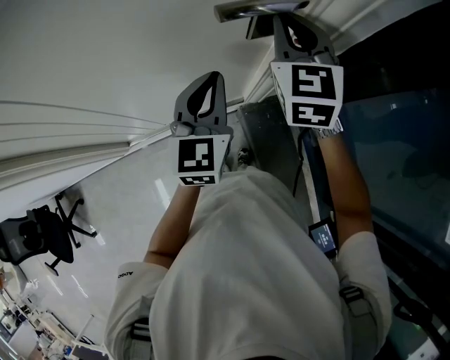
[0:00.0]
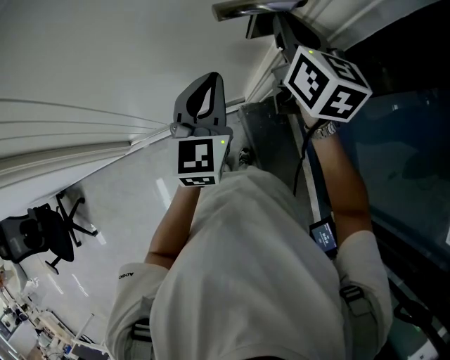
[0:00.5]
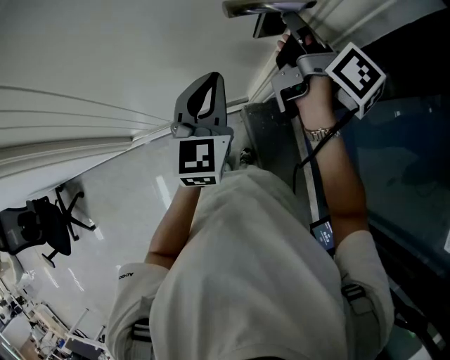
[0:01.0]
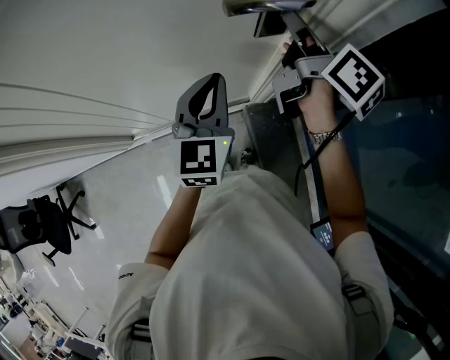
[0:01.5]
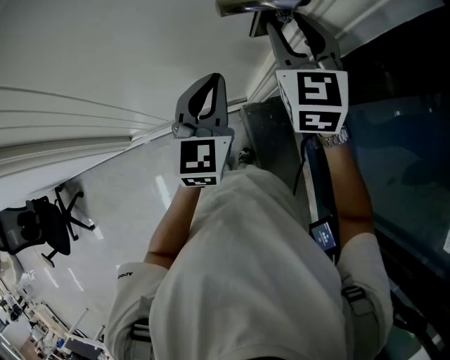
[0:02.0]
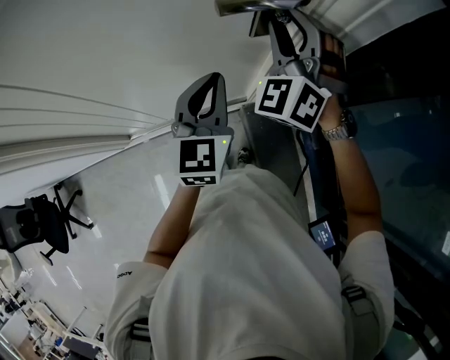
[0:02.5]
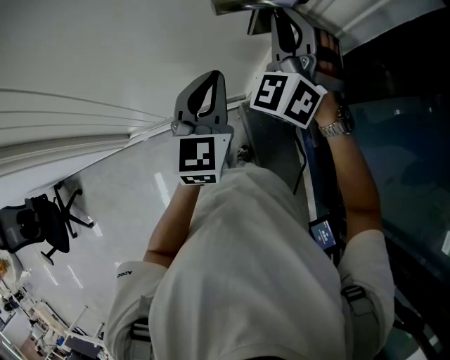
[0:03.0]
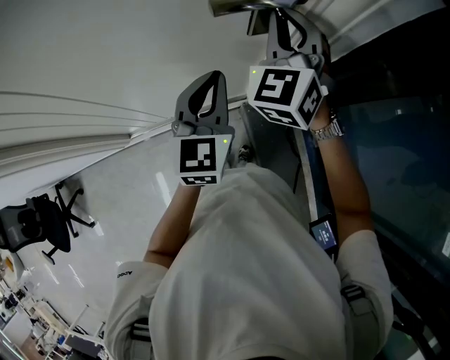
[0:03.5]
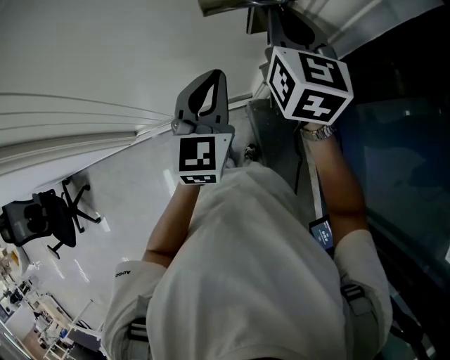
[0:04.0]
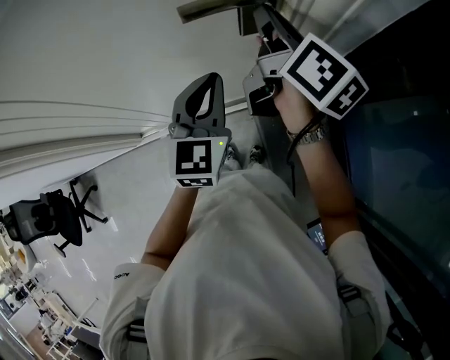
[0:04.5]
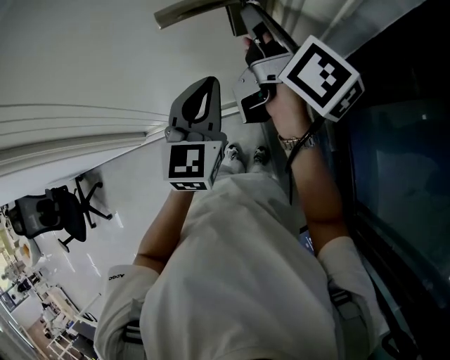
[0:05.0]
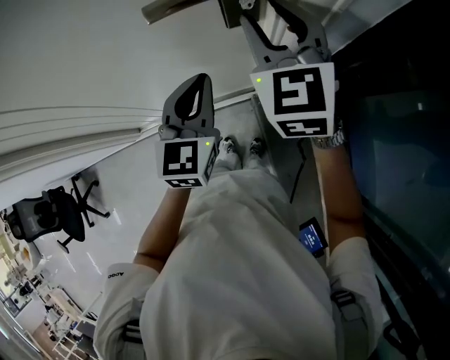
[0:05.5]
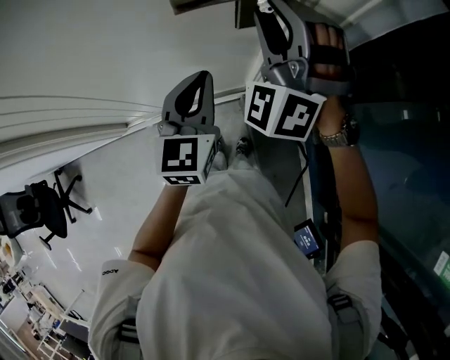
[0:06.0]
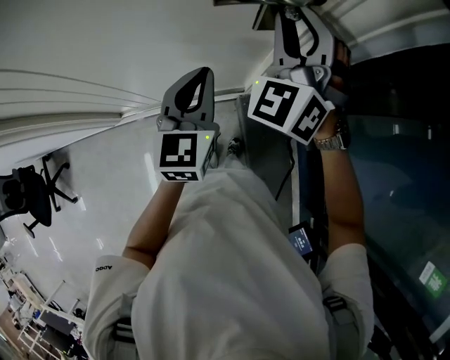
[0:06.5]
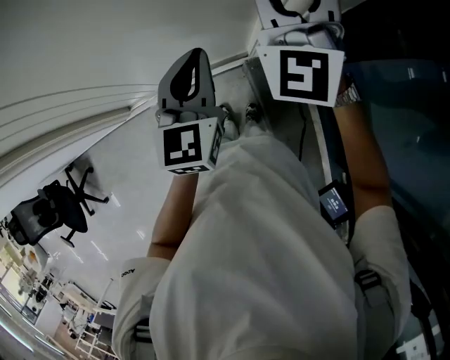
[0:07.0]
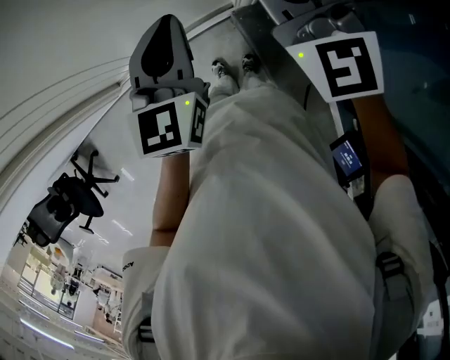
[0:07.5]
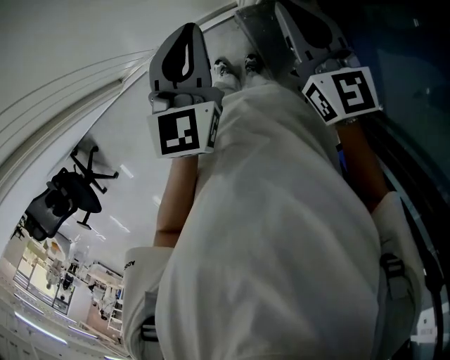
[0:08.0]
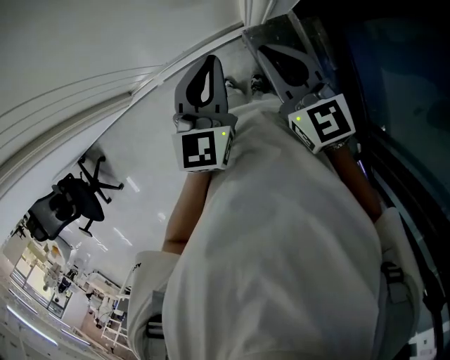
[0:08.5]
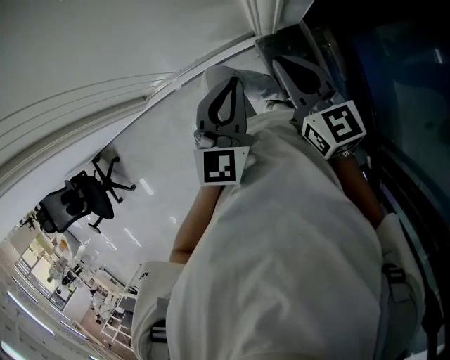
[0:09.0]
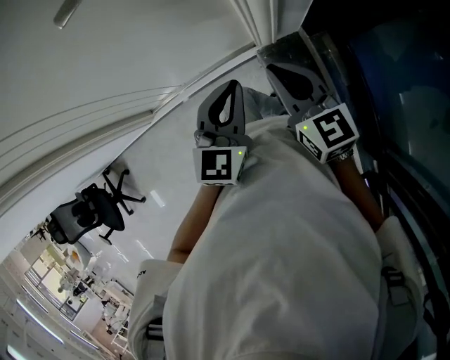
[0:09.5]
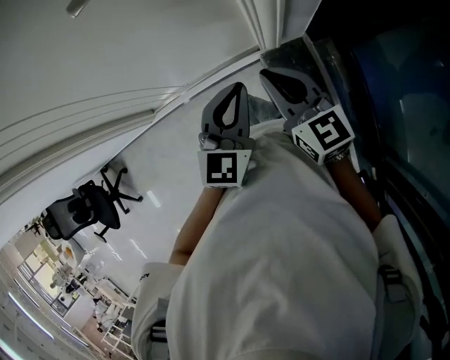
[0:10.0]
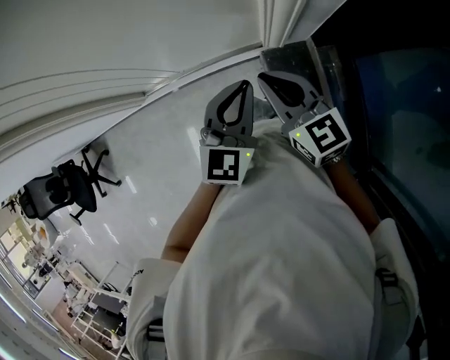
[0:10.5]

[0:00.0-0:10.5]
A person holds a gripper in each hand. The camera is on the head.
0:00.0 to 0:02.0: The right gripper opens its fingers.
0:02.0 to 0:04.0: The right gripper turns by approximately 20 degrees, and closes.
0:04.0 to 0:06.5: The right gripper rotates around the line of its fingers by roughly 60 degrees, counterclockwise from behind, and opens up.
0:06.5 to 0:08.5: The left gripper goes roughly 15 cm backward, to the right and downward, while the right gripper moves backward and downward, some 25 cm, twists about 60 degrees clockwise, seen from behind, and closes up.

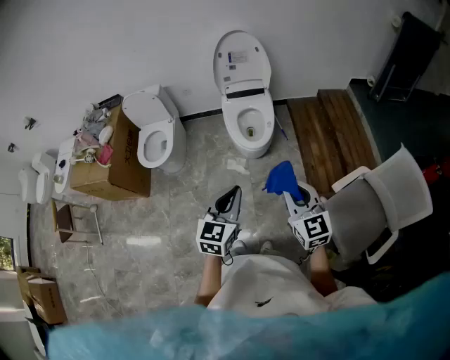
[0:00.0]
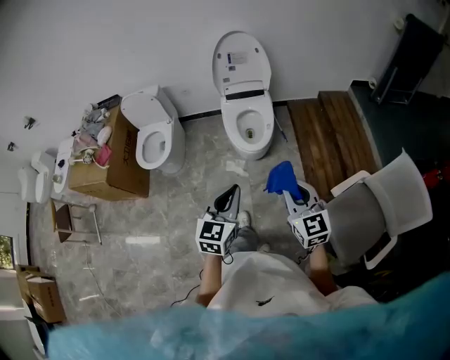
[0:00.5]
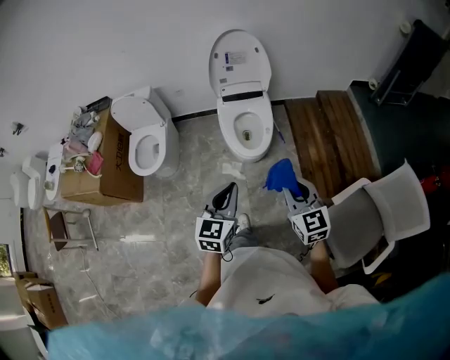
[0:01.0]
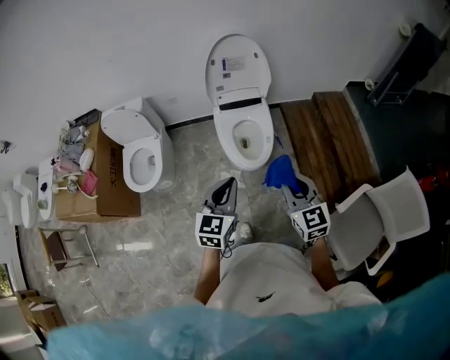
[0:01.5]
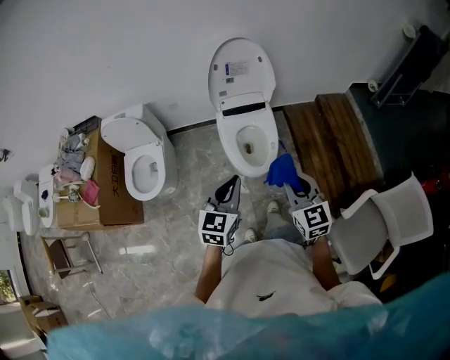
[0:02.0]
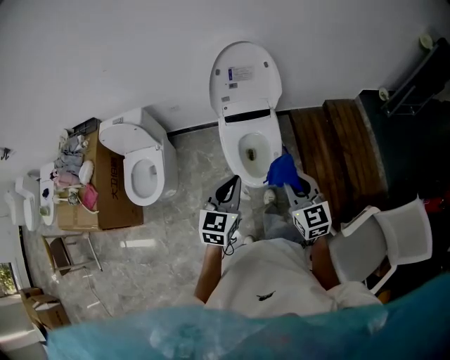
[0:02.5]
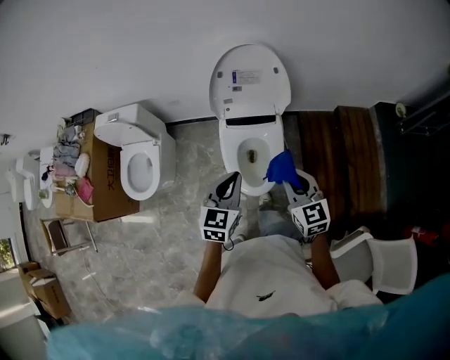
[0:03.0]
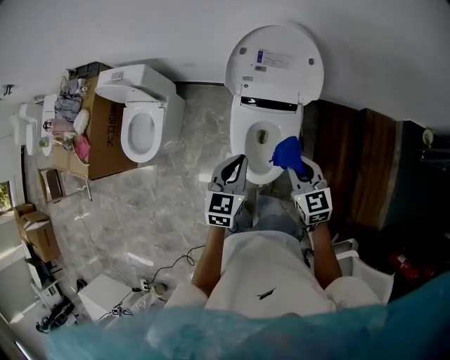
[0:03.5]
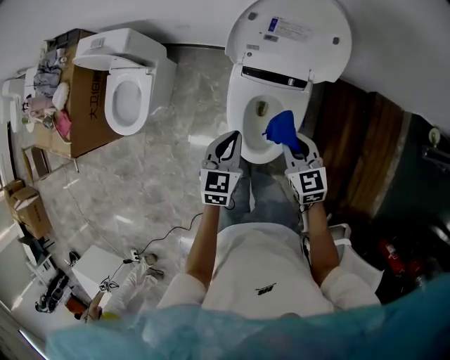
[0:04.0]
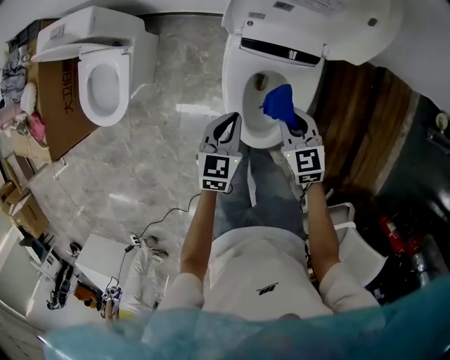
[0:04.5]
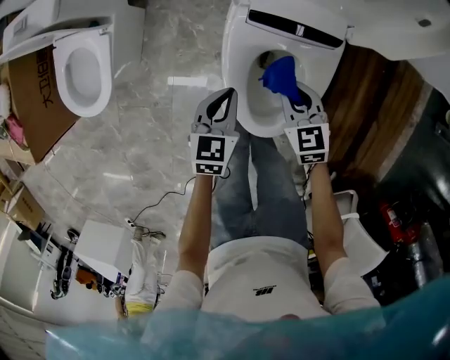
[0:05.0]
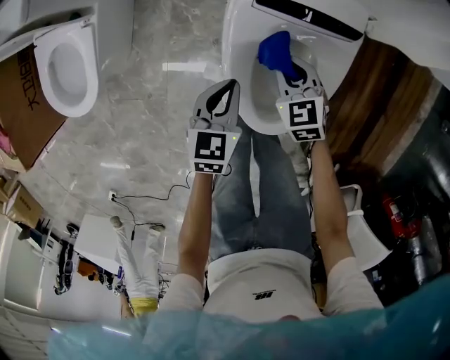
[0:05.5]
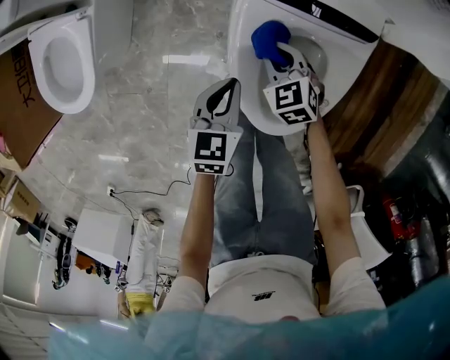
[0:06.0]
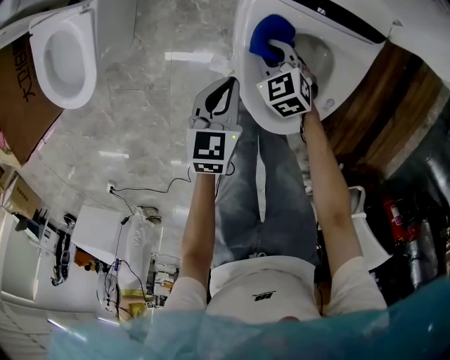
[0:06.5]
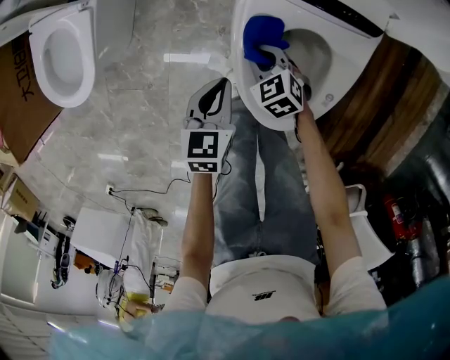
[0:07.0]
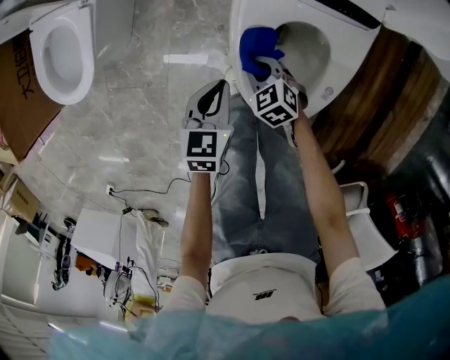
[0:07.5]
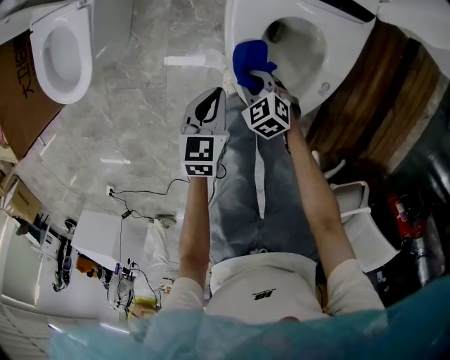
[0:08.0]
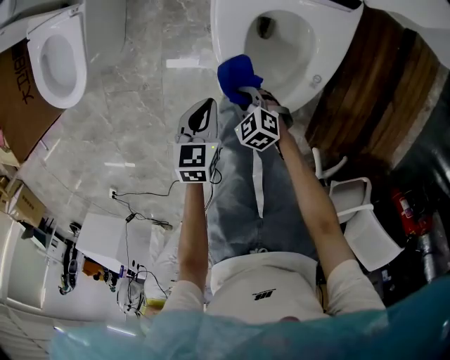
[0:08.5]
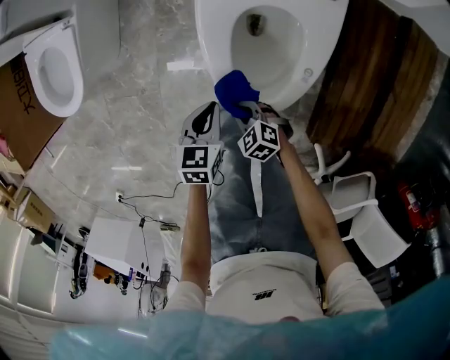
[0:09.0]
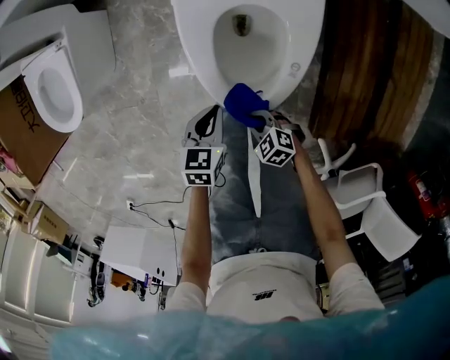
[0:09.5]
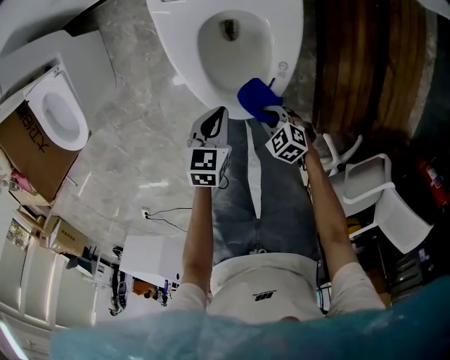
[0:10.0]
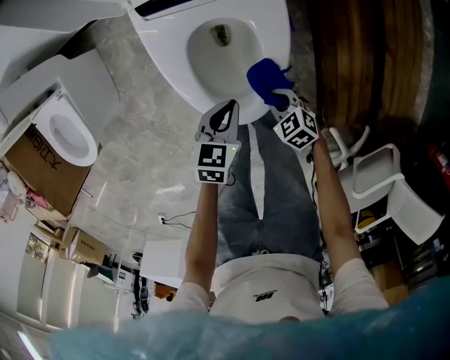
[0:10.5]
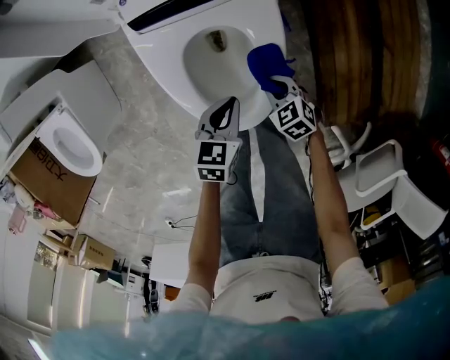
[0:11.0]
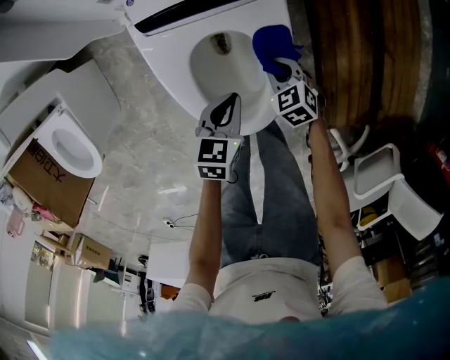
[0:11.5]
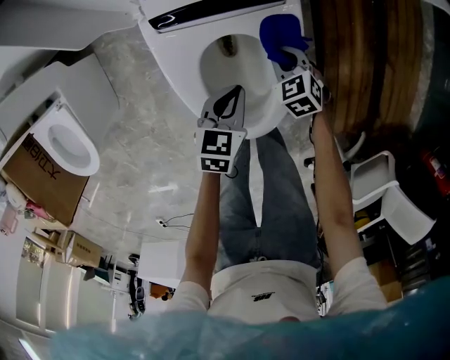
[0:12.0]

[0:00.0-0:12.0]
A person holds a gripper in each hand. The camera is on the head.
0:00.0 to 0:02.0: Both grippers travel together forward, approximately 30 cm.
0:02.0 to 0:04.0: The grippers both shift forward and downward by approximately 40 cm. The left gripper rotates roughly 30 degrees, while the right gripper changes its angle by about 30 degrees.
0:04.0 to 0:06.0: The grippers both shift downward by about 35 cm. The right gripper turns by some 30 degrees.
0:06.0 to 0:08.0: The right gripper travels backward and to the left by roughly 15 cm, while the left gripper travels backward by about 10 cm.
0:08.0 to 0:10.0: The right gripper moves about 20 cm. The left gripper shifts by about 15 cm.
0:10.0 to 0:12.0: The left gripper ends up roughly 15 cm from where it was. The right gripper changes place by roughly 30 cm, and turns by some 30 degrees.

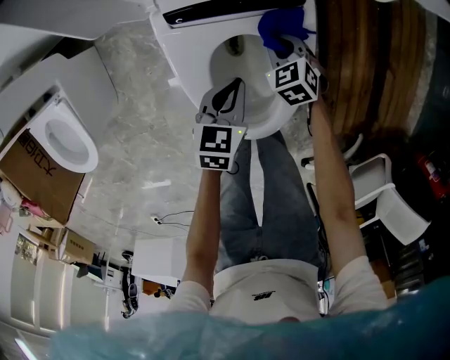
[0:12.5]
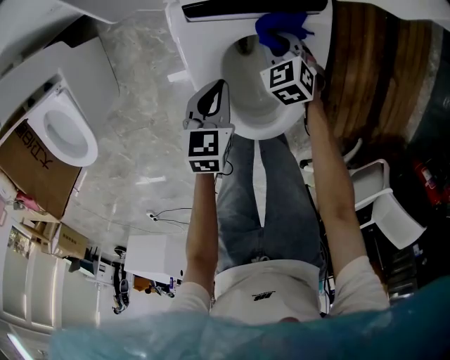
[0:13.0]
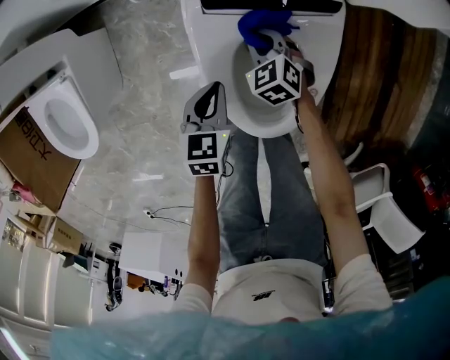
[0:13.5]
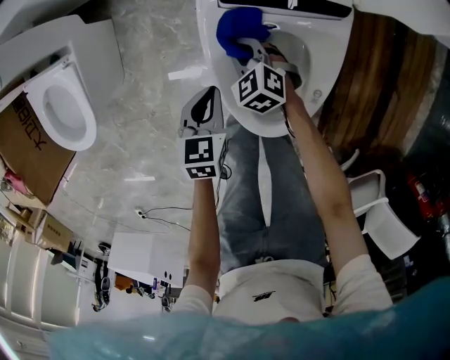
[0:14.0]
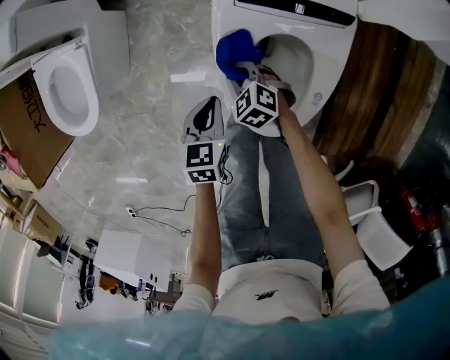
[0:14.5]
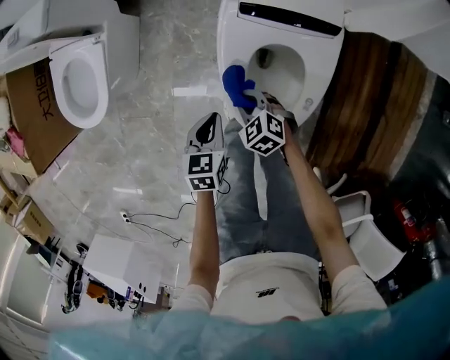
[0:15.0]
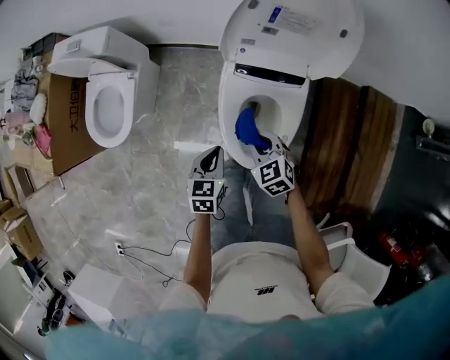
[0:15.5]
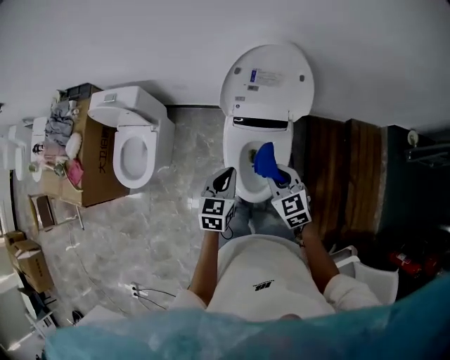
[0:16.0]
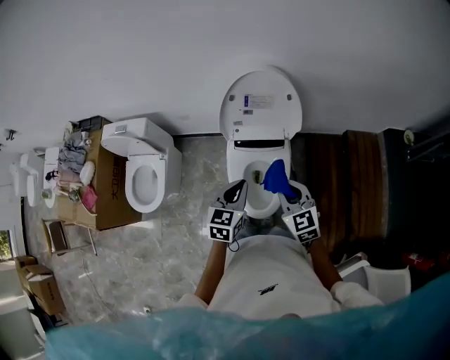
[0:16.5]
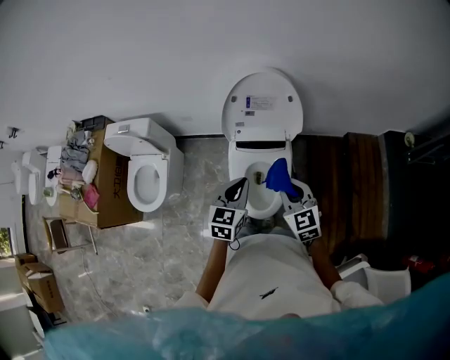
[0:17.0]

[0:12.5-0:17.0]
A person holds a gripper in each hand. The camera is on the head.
0:12.5 to 0:14.5: The left gripper shifts by about 20 cm, and rotates roughly 20 degrees. The right gripper moves some 25 cm, and changes its angle by approximately 30 degrees.
0:14.5 to 0:17.0: The two grippers go roughly 50 cm upward. The left gripper rotates approximately 30 degrees. The right gripper tips its fingers upward by roughly 30 degrees.
